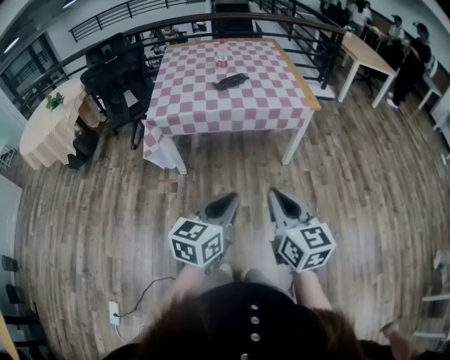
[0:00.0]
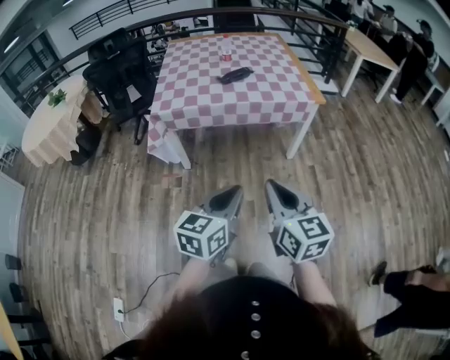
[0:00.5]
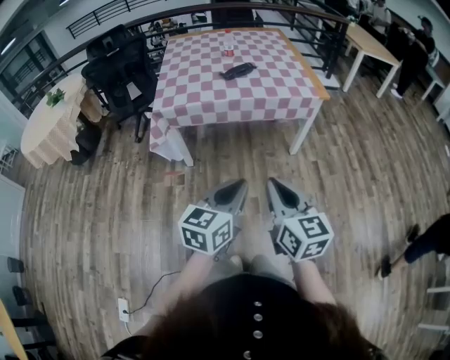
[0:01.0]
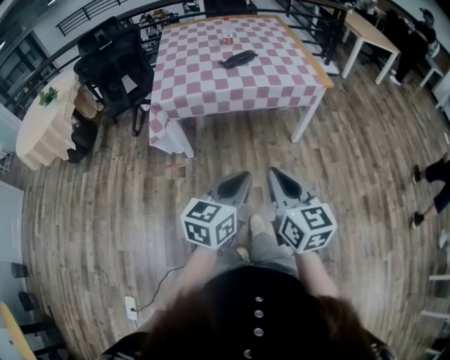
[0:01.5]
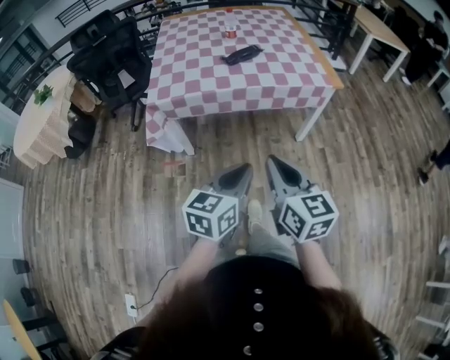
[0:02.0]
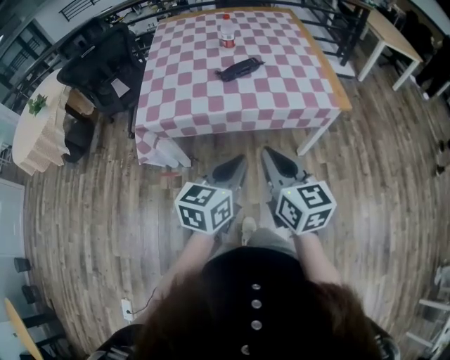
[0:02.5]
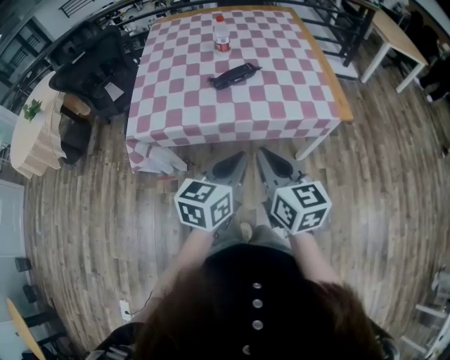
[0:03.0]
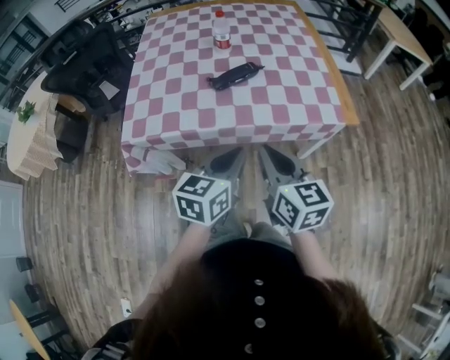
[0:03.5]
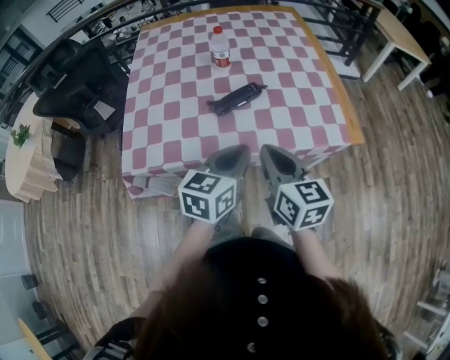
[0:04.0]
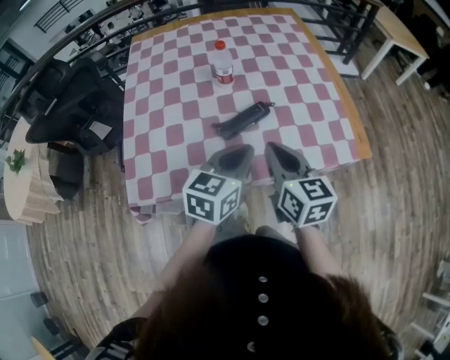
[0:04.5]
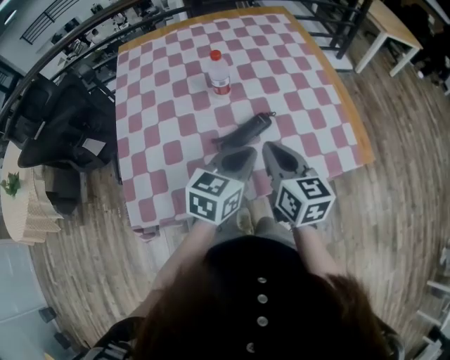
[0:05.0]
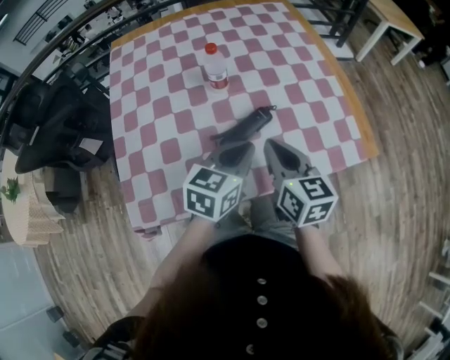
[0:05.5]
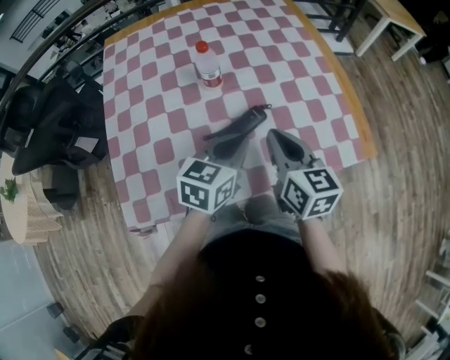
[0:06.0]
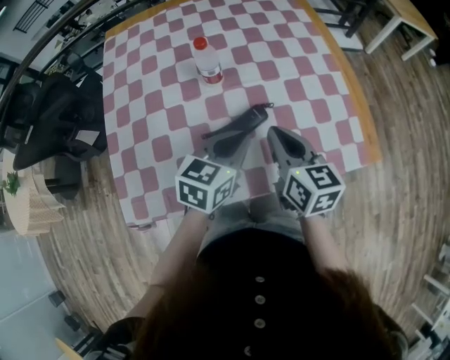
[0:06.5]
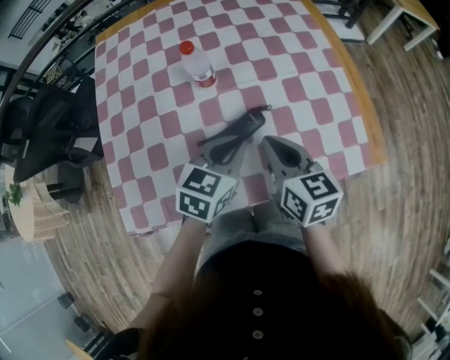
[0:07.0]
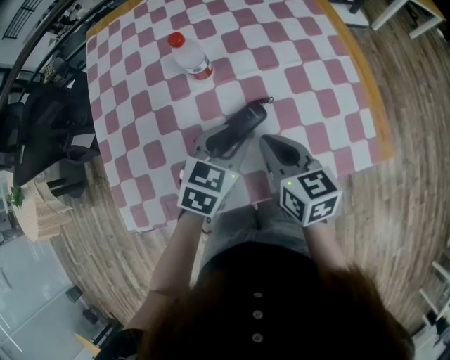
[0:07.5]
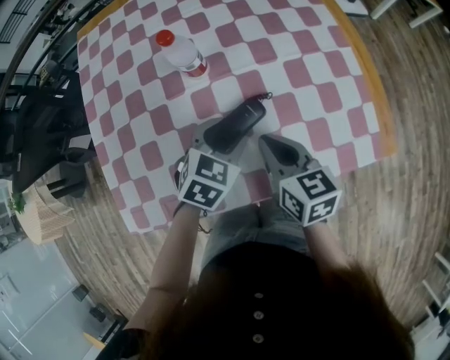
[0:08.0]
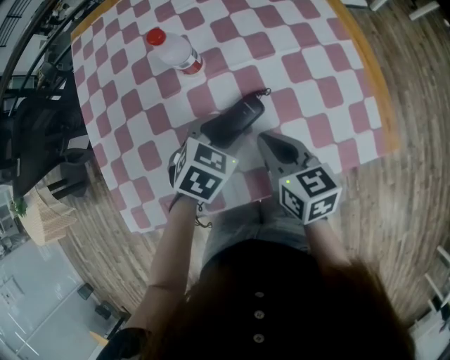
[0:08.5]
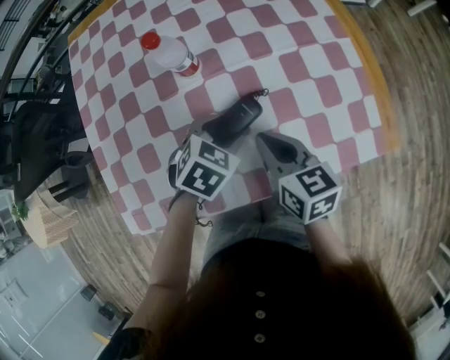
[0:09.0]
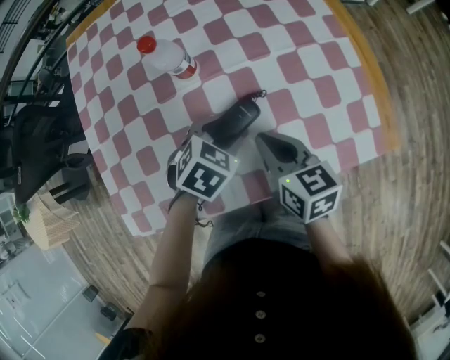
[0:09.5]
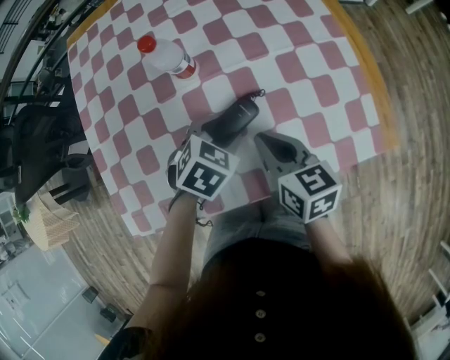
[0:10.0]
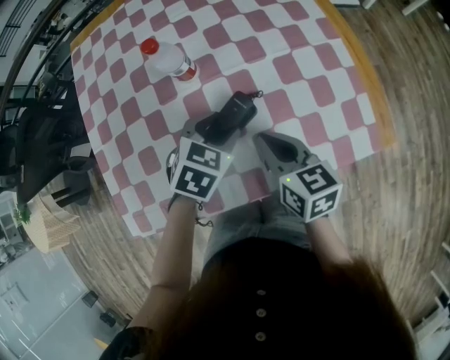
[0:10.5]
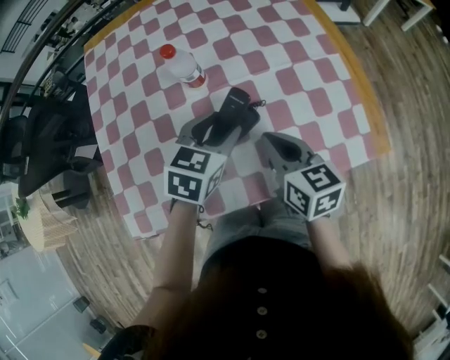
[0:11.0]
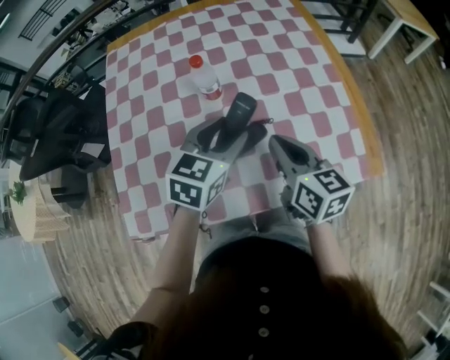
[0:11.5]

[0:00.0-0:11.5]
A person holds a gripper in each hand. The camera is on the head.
0:00.0 to 0:02.0: The two grippers go some 15 cm forward and to the left.
0:02.0 to 0:04.0: Both grippers move forward, about 40 cm.
0:04.0 to 0:06.0: The two grippers go approximately 20 cm forward.
0:06.0 to 0:07.5: The two grippers go approximately 5 cm downward. The left gripper opens up.
0:07.5 to 0:09.5: The left gripper shifts roughly 5 cm downward, and changes its angle by roughly 30 degrees.
0:09.5 to 0:11.5: The right gripper travels upward by some 10 cm; the left gripper moves upward, about 15 cm, and tips its fingers upward by about 30 degrees.

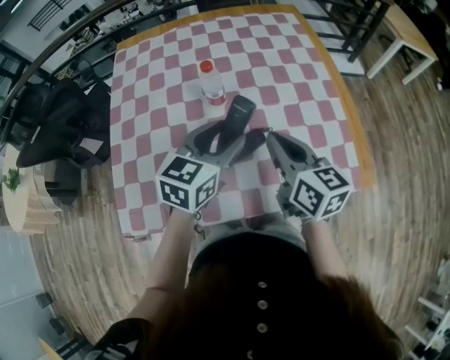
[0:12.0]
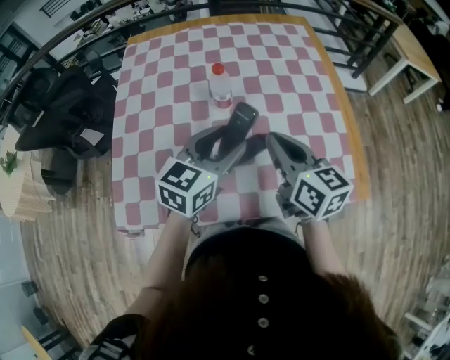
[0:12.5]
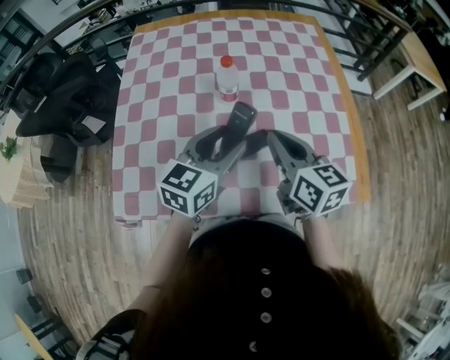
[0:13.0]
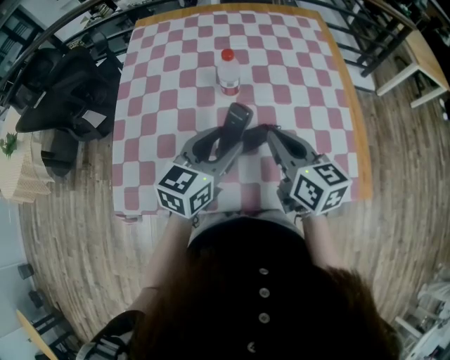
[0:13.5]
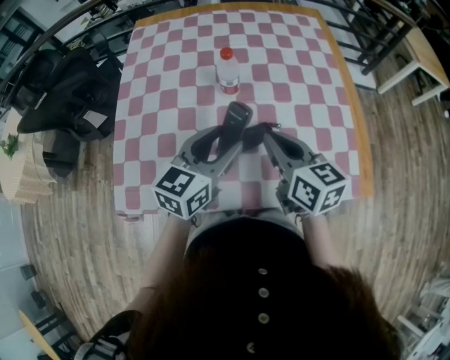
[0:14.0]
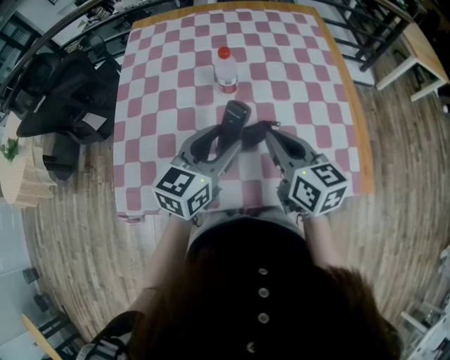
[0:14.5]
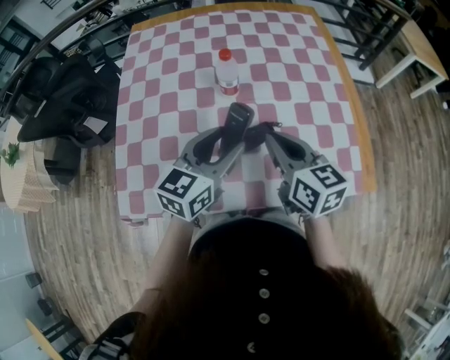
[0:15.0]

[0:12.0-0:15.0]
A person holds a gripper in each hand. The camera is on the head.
0:12.0 to 0:15.0: There are only small adjustments of the grippers.

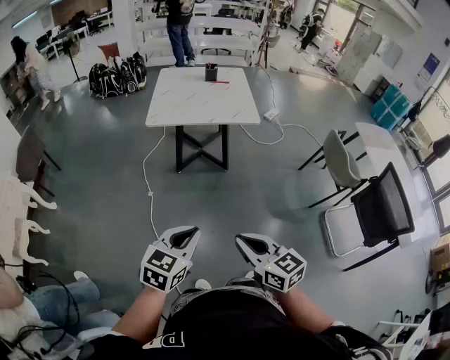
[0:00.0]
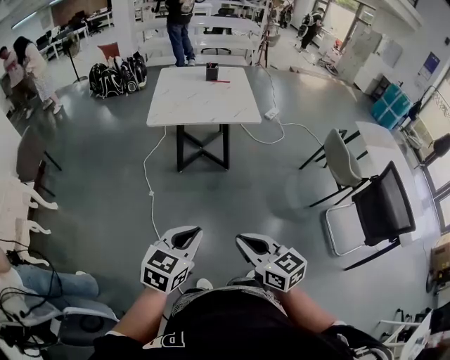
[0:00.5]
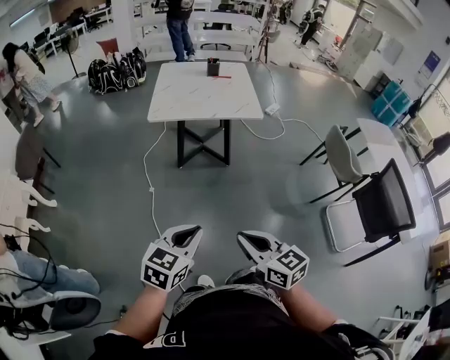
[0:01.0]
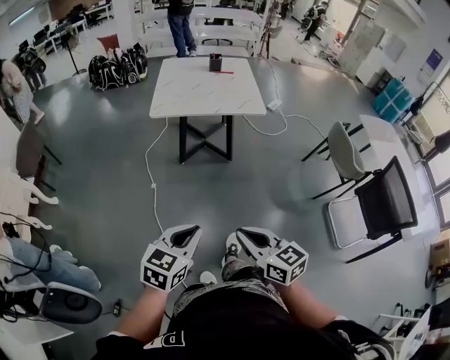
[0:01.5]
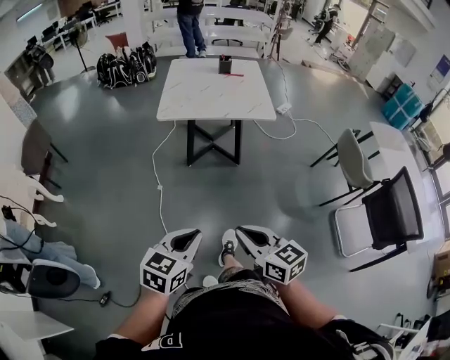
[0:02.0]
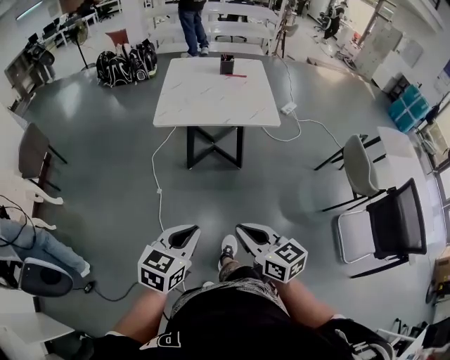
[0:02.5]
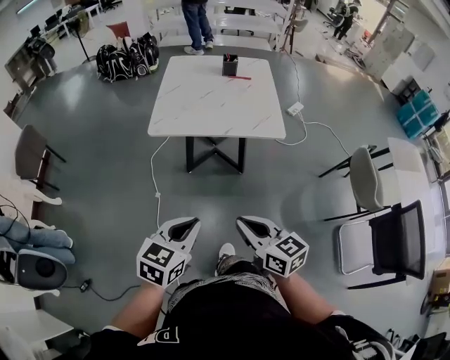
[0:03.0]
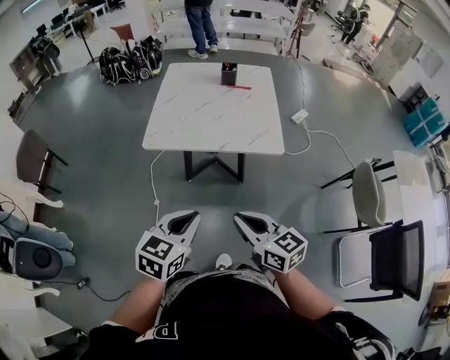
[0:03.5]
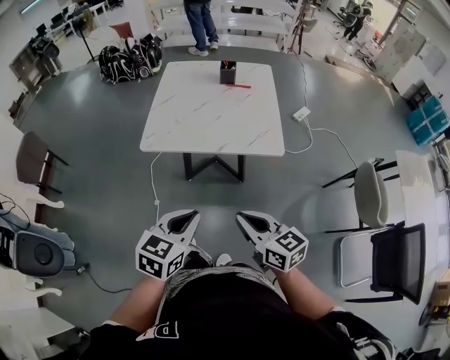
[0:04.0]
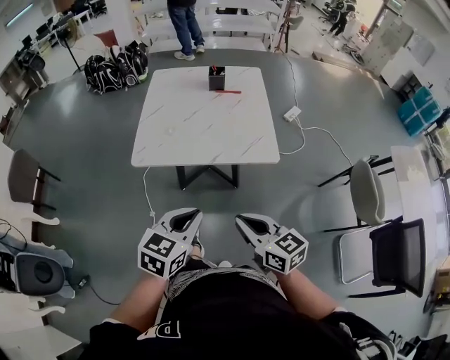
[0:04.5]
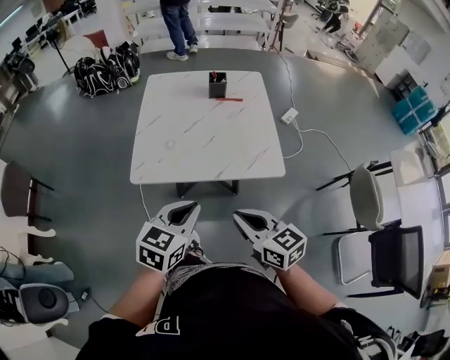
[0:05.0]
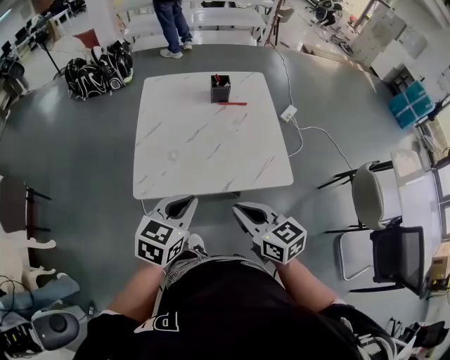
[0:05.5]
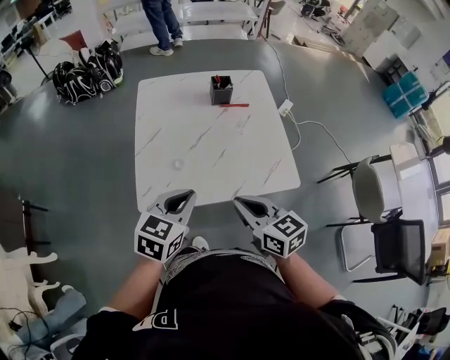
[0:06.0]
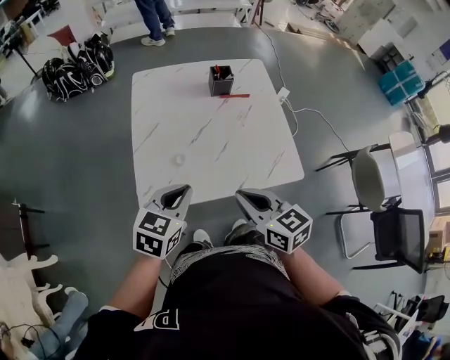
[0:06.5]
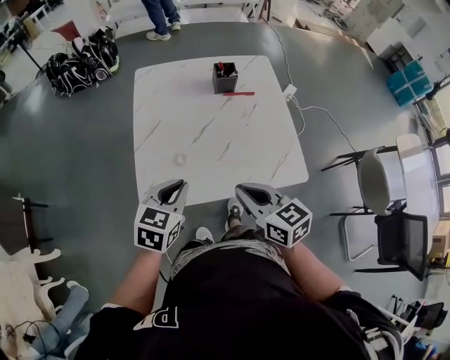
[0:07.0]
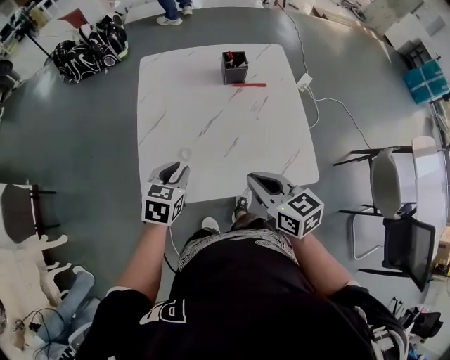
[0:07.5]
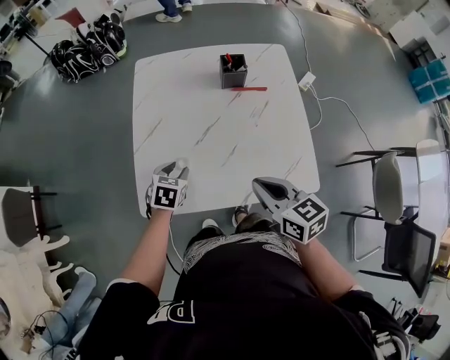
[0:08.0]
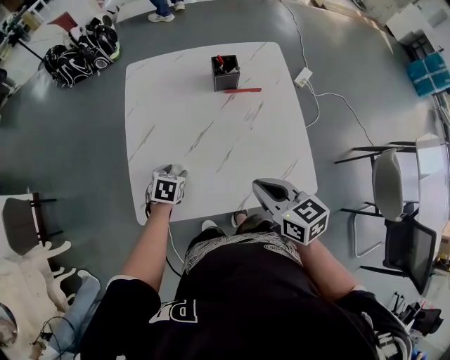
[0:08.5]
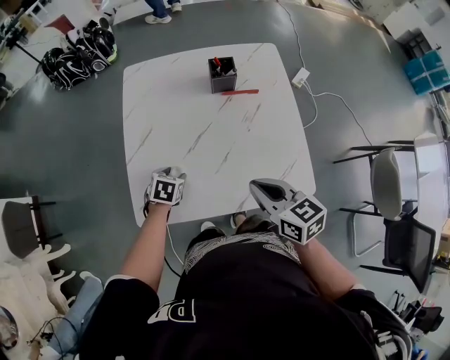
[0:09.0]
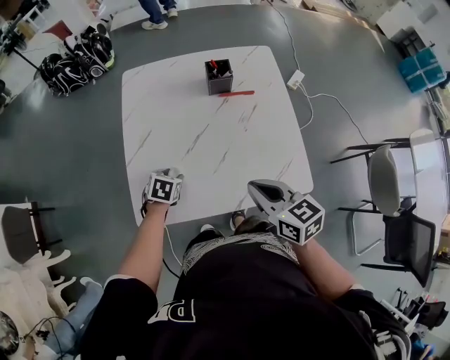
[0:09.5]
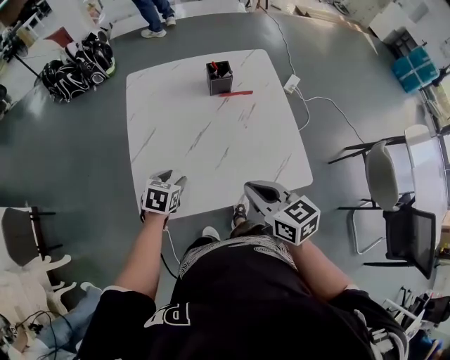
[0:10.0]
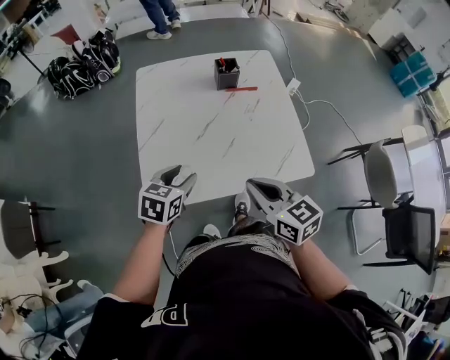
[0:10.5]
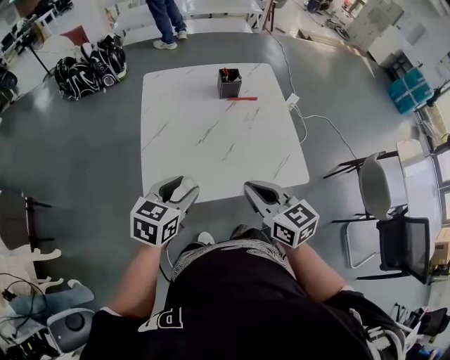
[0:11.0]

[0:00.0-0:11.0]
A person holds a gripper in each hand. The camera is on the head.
0:00.0 to 0:02.0: The right gripper is displaced forward by some 5 cm.
0:02.0 to 0:03.5: The two grippers go approximately 30 cm forward.
0:03.5 to 0:05.5: Both grippers move forward, about 25 cm.
0:05.5 to 0:07.5: The left gripper travels forward, downward and to the left by roughly 25 cm, while the right gripper moves forward, some 15 cm.
0:07.5 to 0:09.0: The left gripper heads downward and forward, covering about 15 cm, changes its angle by approximately 20 degrees, and opens up, while the right gripper shifts by roughly 5 cm.
0:09.0 to 0:11.0: The right gripper is displaced backward, to the left and upward by some 15 cm; the left gripper travels upward and backward by roughly 30 cm, and tips its fingers upward by roughly 30 degrees.

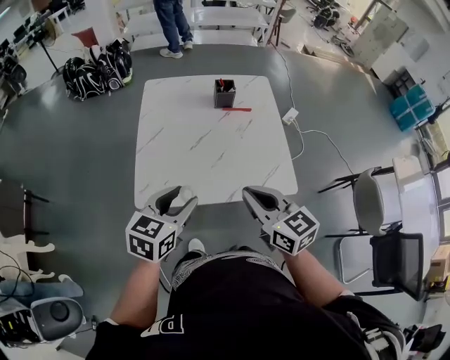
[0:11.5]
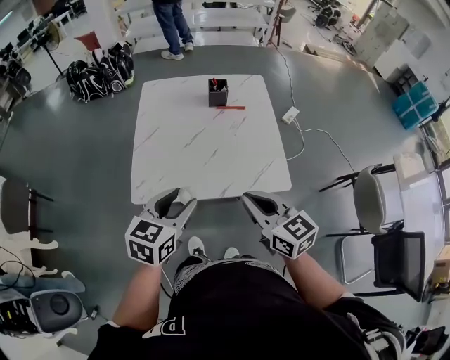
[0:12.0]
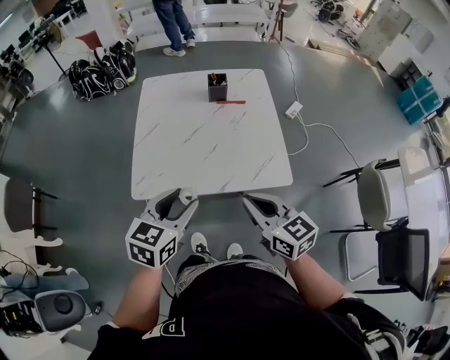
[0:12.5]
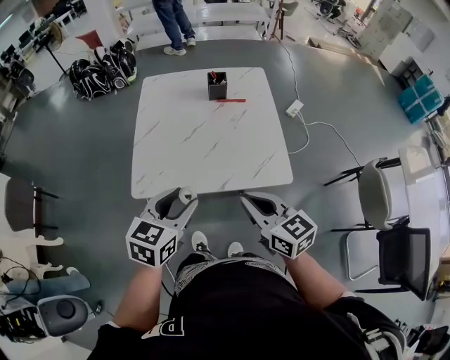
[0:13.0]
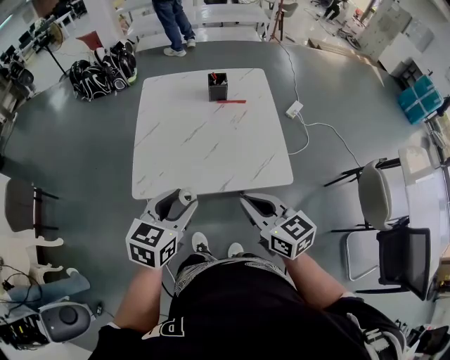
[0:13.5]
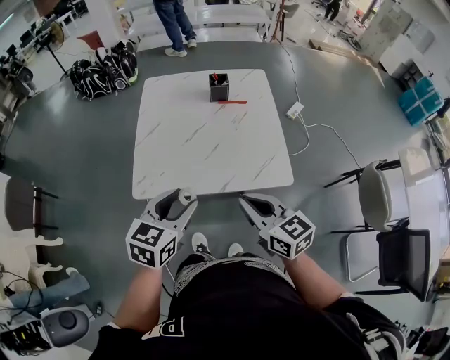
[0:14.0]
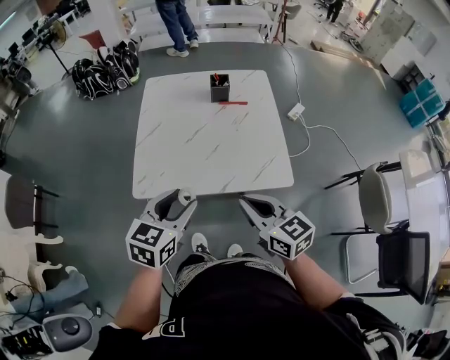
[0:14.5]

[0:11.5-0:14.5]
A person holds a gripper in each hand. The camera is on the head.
0:11.5 to 0:13.0: The left gripper travels to the right by roughly 5 cm, while the right gripper goes some 5 cm backward and to the right.
0:13.0 to 0:14.5: There are only small adjustments of the grippers.
